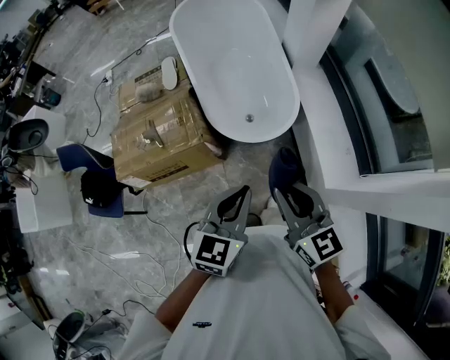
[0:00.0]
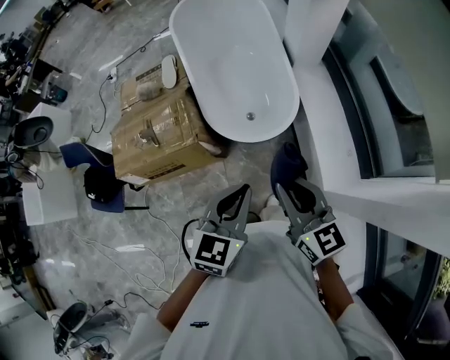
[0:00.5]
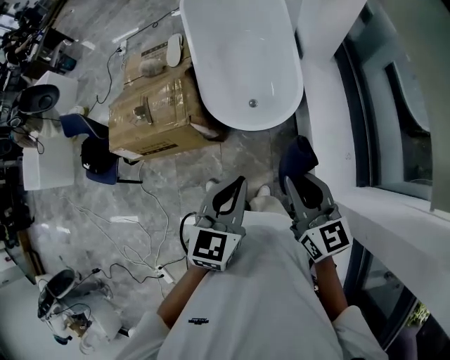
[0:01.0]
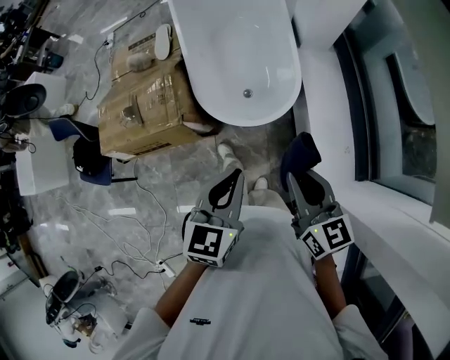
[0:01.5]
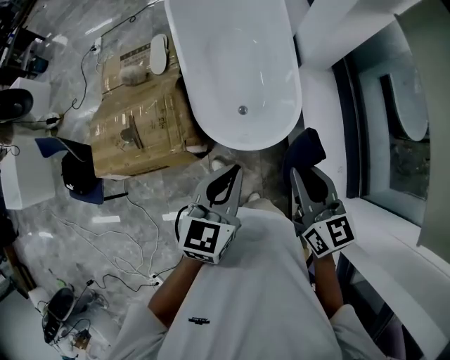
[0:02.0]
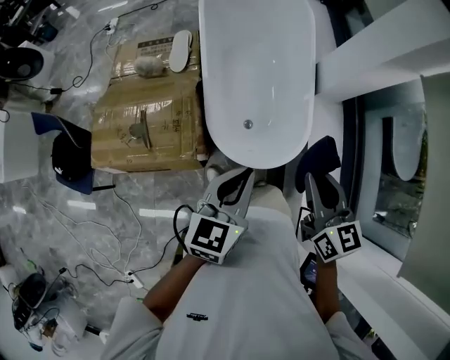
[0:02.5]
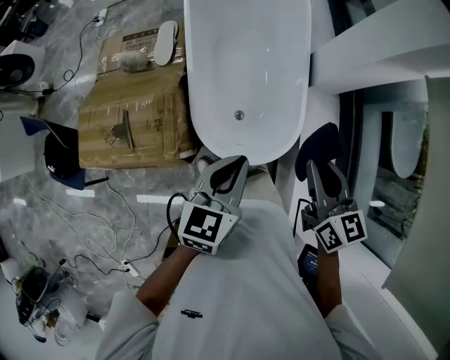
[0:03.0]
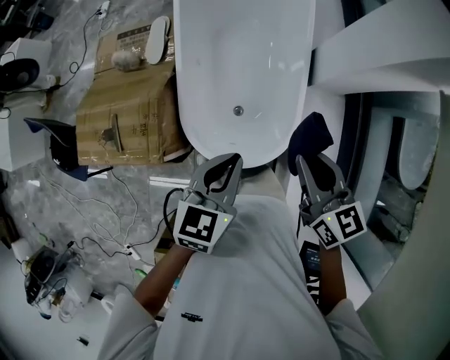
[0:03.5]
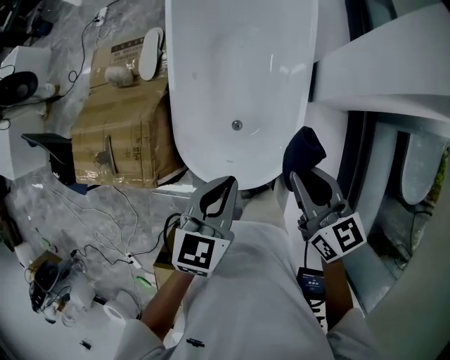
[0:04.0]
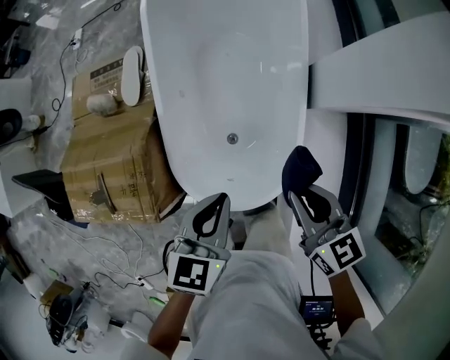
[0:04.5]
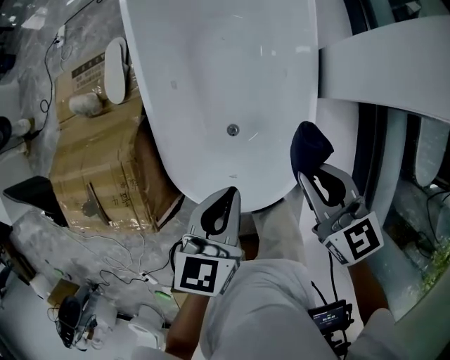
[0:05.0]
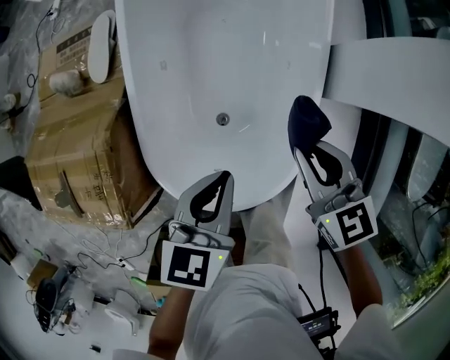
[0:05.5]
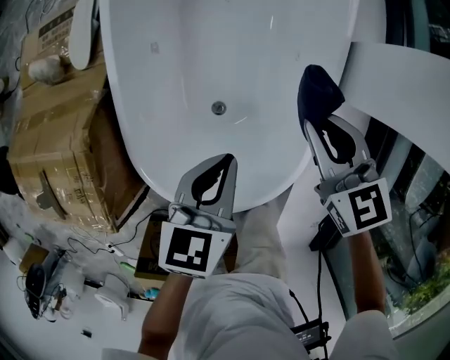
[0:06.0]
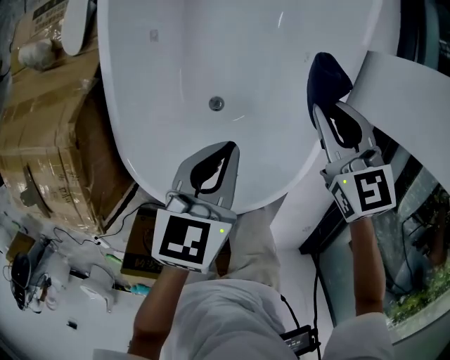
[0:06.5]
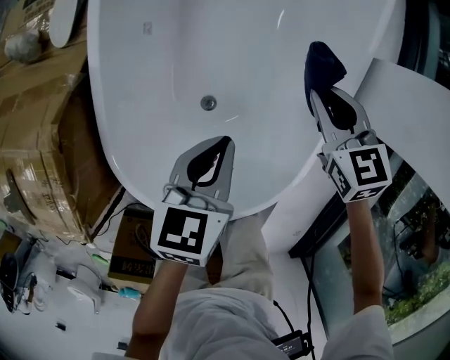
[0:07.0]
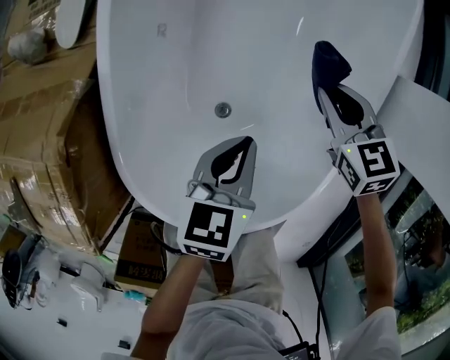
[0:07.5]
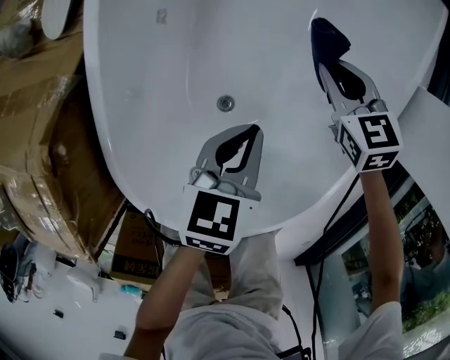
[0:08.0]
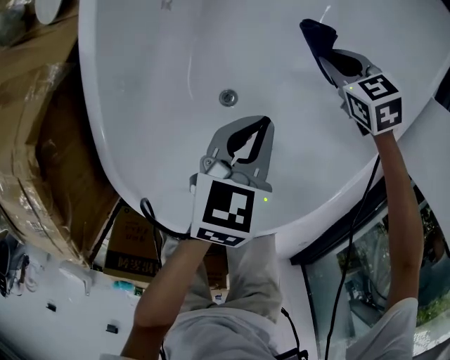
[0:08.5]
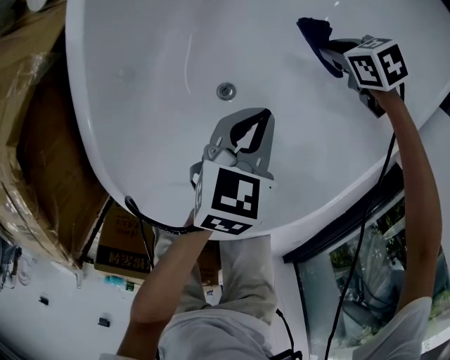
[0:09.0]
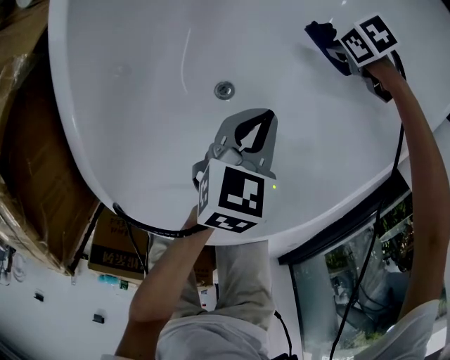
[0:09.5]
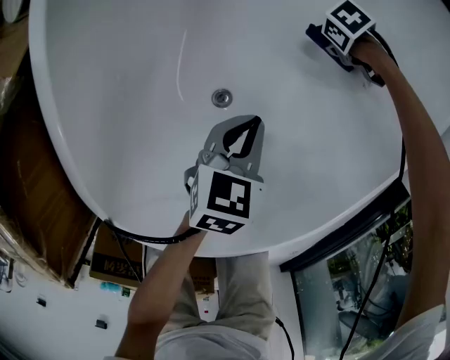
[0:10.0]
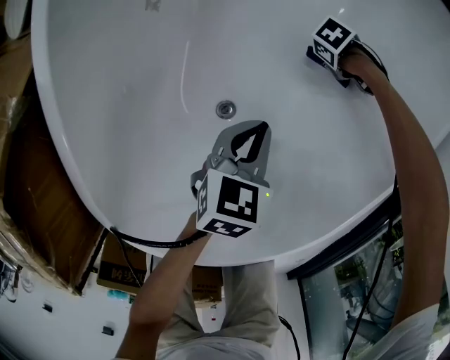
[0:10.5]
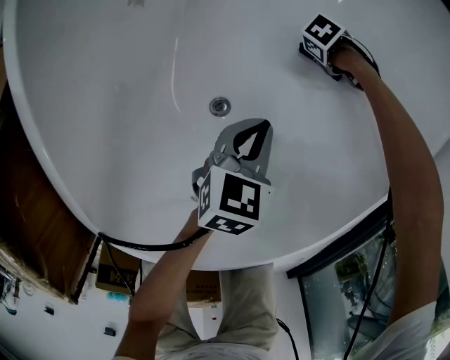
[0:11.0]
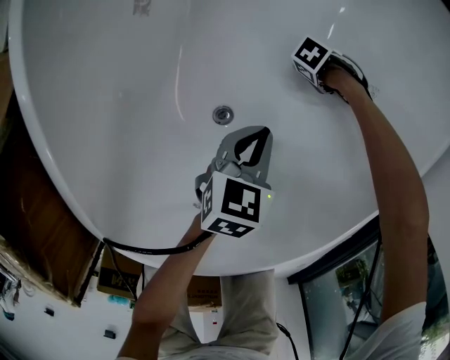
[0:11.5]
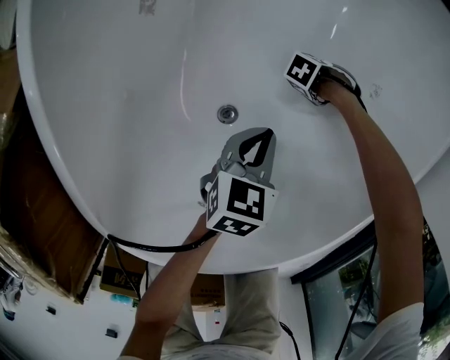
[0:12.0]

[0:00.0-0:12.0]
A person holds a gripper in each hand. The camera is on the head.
0:00.0 to 0:02.0: The left gripper ends up approximately 20 cm from where it was.
0:02.0 to 0:04.0: The left gripper changes place by about 25 cm.
0:04.0 to 0:06.0: The left gripper goes roughly 25 cm downward.
0:06.0 to 0:08.0: The left gripper heads downward, covering roughly 20 cm.
0:08.0 to 0:10.0: The left gripper moves downward, approximately 15 cm.

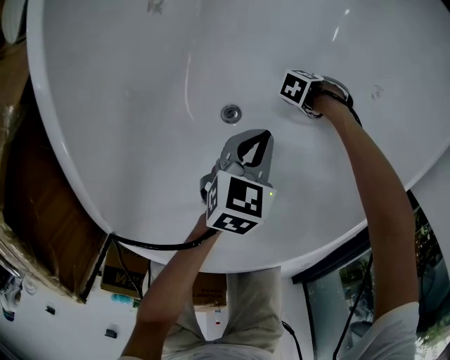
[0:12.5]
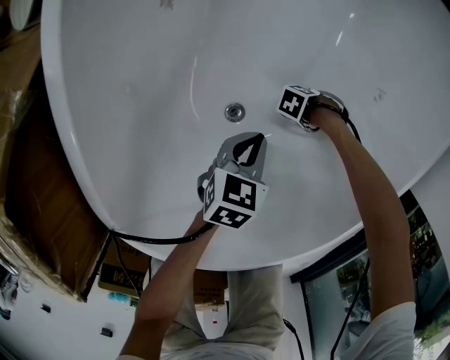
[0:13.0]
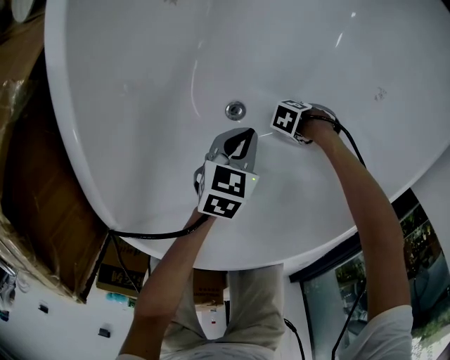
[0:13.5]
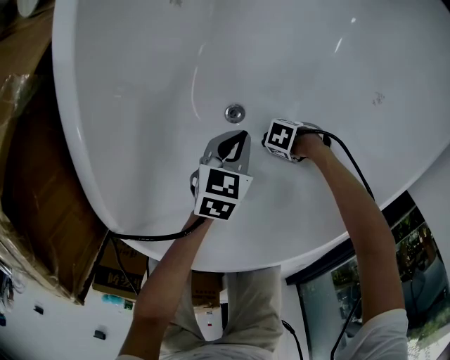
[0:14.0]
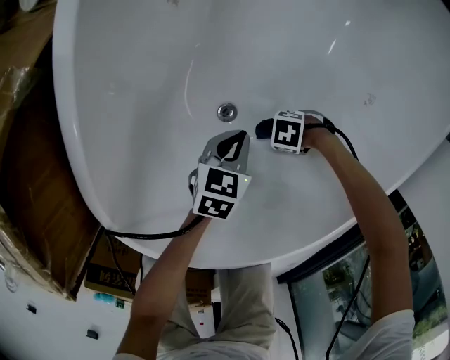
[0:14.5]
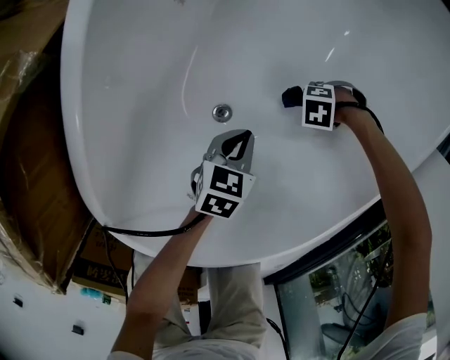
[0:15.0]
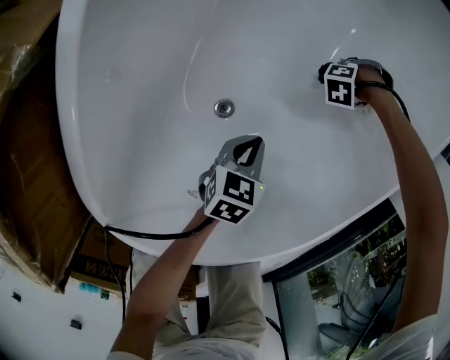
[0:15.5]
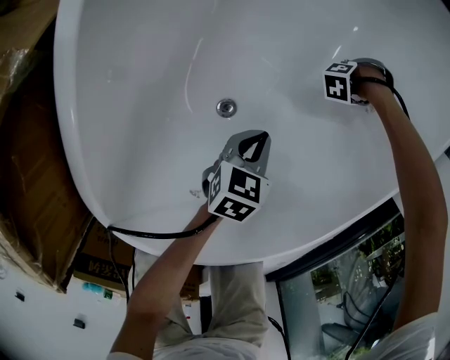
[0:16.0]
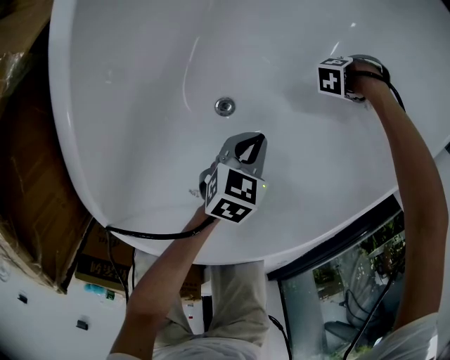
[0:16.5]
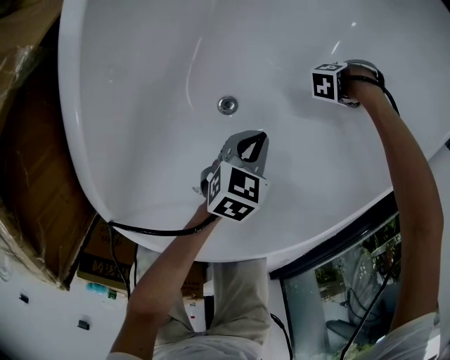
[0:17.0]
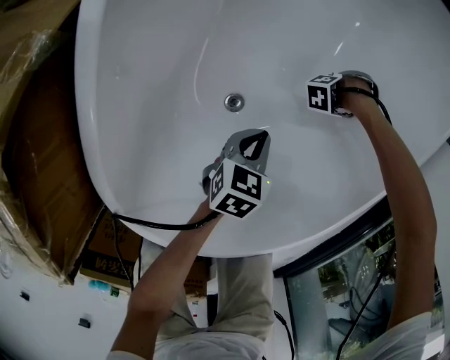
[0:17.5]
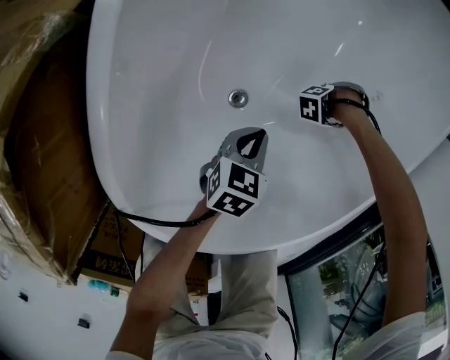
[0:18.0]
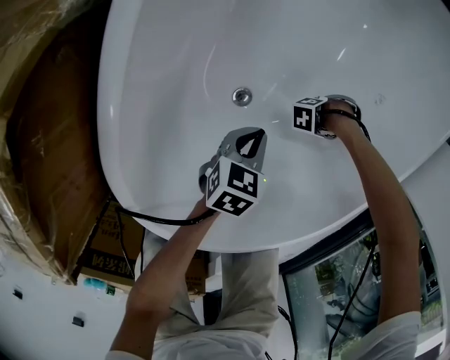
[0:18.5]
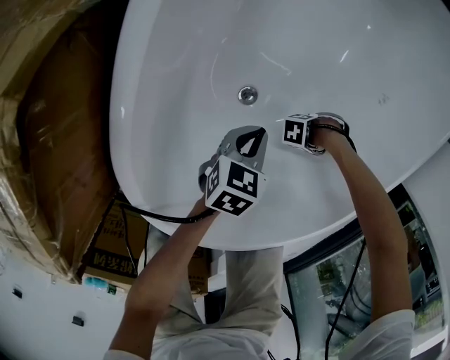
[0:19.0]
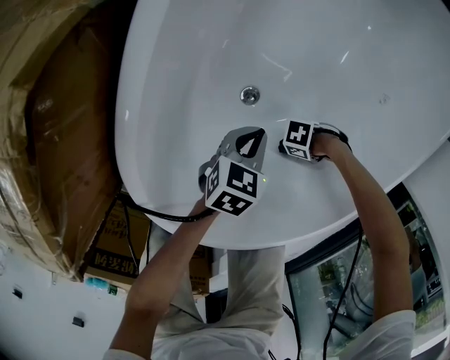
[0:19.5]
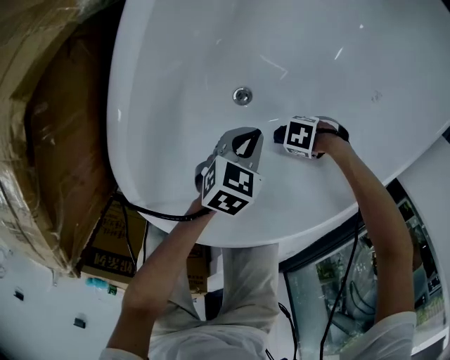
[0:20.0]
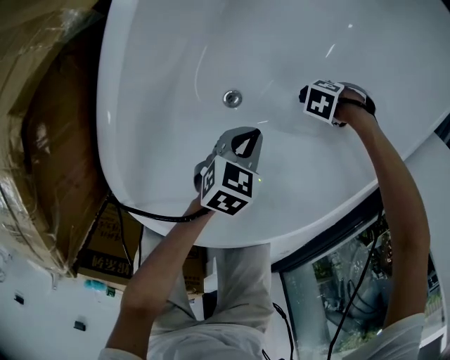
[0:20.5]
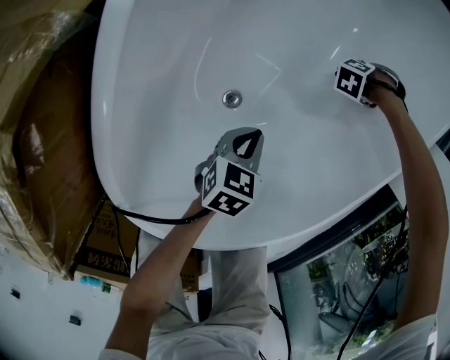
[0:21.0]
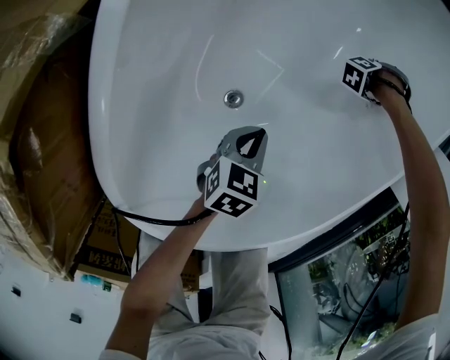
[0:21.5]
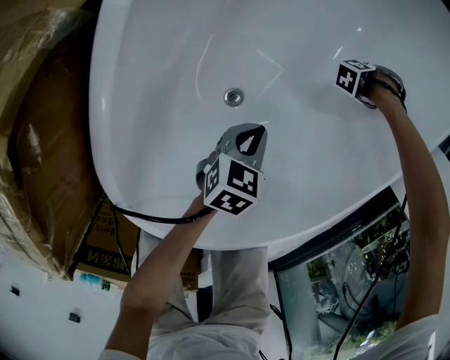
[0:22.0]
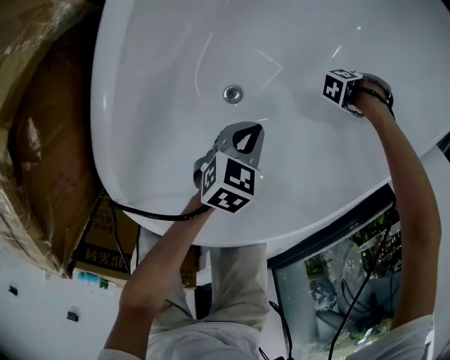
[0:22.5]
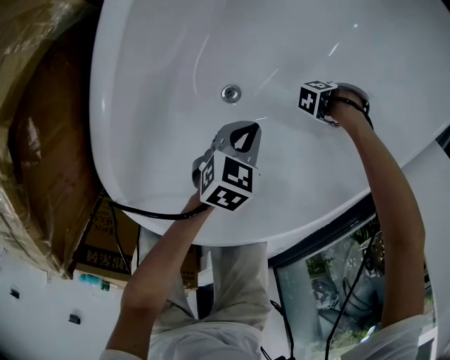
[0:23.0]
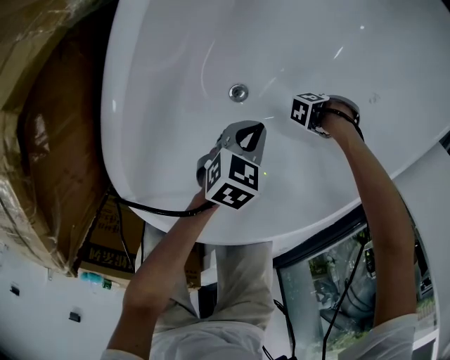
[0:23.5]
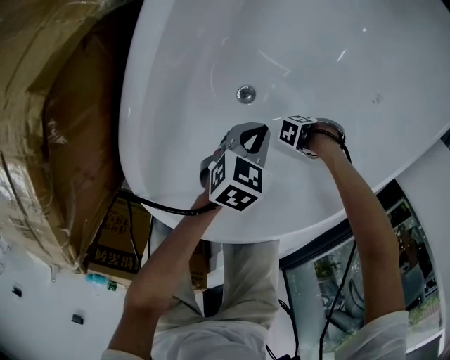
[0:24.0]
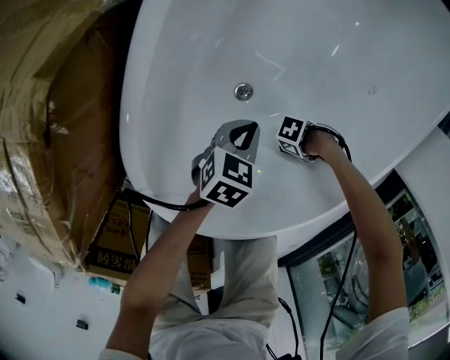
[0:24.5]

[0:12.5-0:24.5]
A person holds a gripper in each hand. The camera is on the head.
0:12.5 to 0:14.5: The left gripper shifts by approximately 5 cm.
0:16.5 to 0:18.5: The left gripper ends up some 5 cm from where it was.
0:22.5 to 0:24.5: The left gripper ends up some 5 cm from where it was.

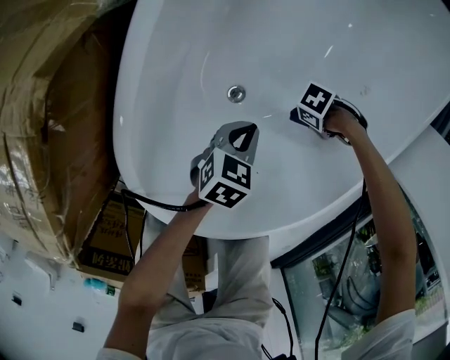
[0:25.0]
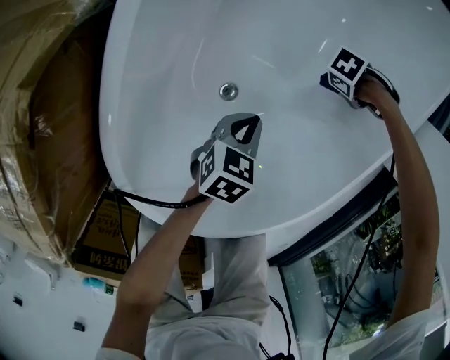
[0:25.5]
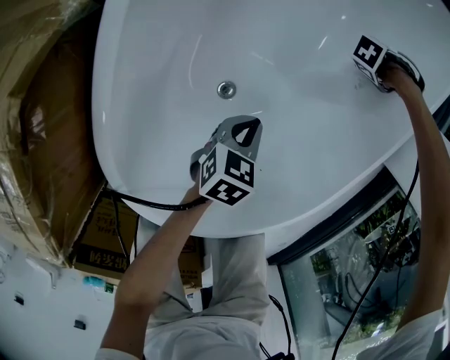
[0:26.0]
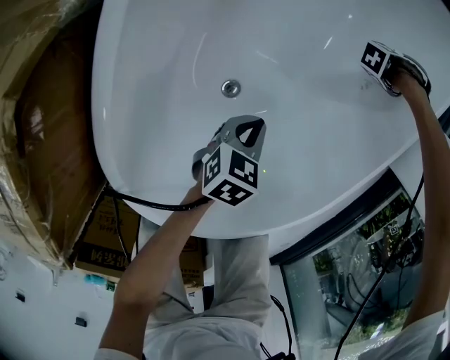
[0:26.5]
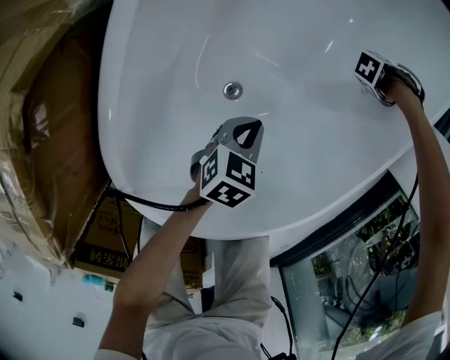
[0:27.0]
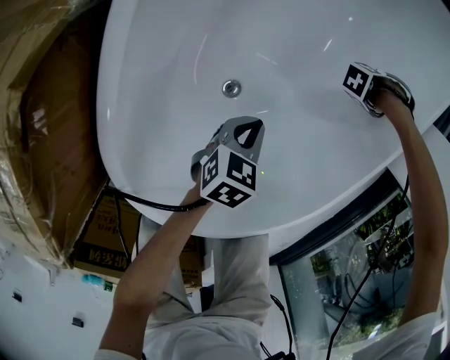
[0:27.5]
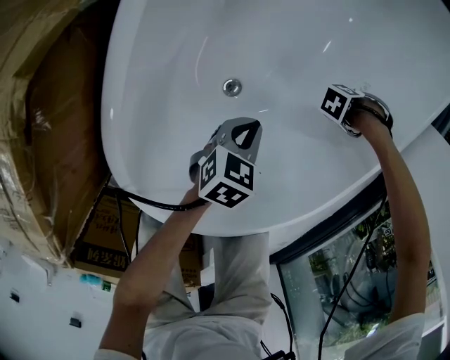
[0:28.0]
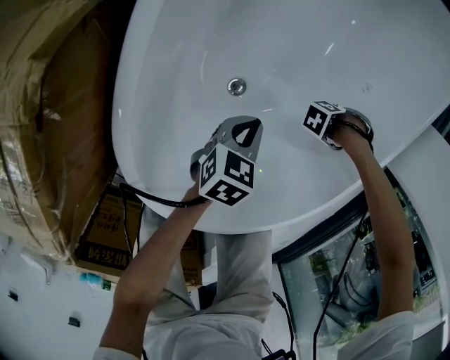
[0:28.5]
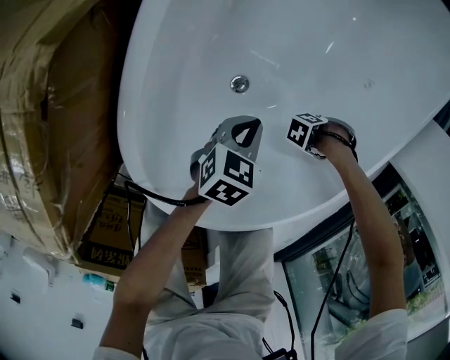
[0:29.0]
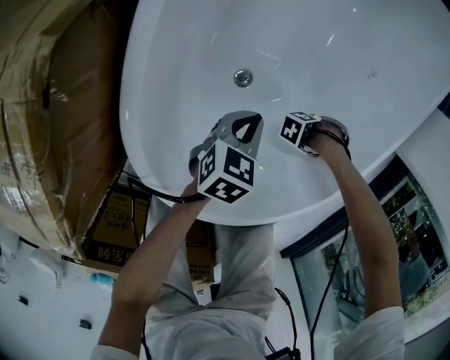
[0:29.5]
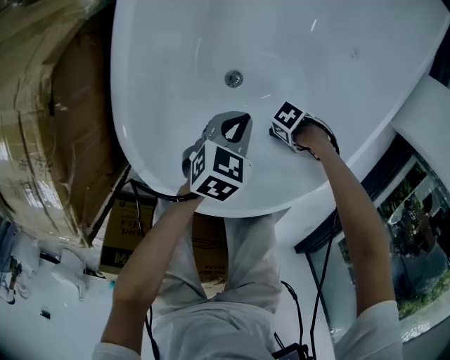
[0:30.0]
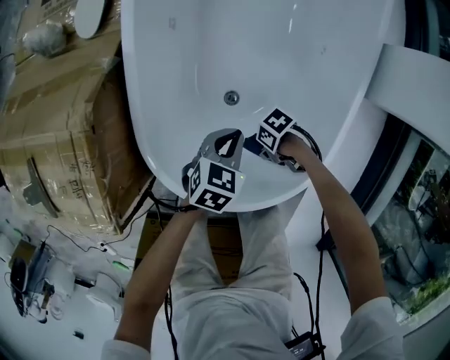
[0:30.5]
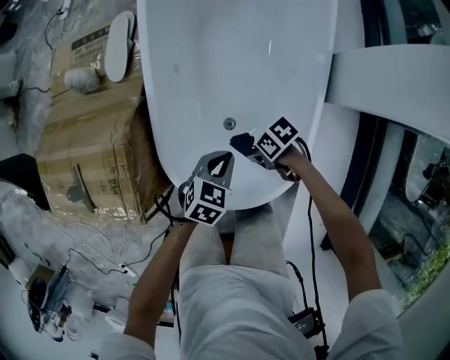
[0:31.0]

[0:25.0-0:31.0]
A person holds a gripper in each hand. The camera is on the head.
0:29.0 to 0:31.0: The left gripper shifts approximately 25 cm upward, and turns by some 30 degrees.
